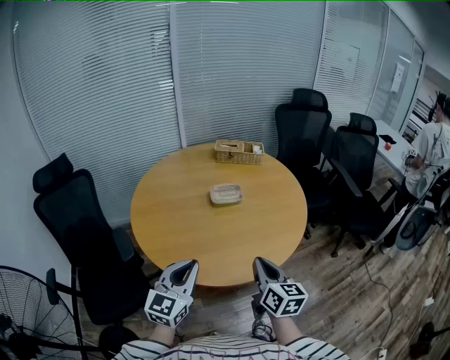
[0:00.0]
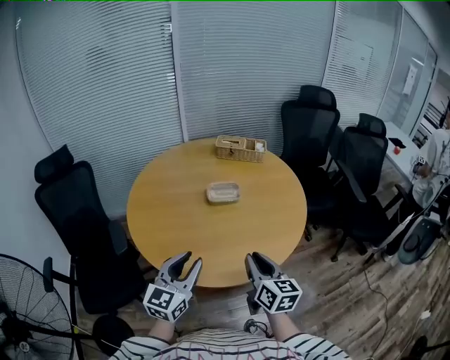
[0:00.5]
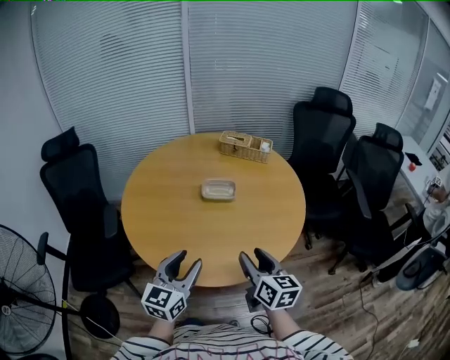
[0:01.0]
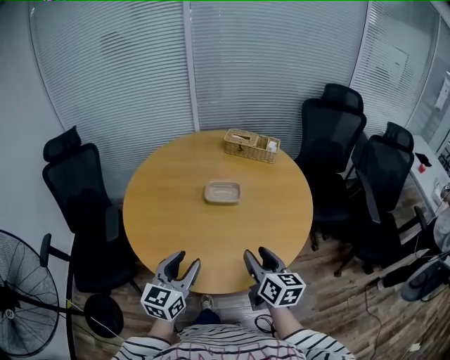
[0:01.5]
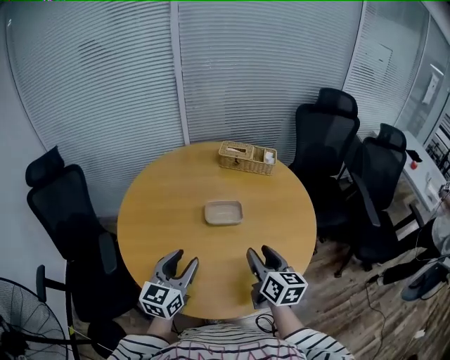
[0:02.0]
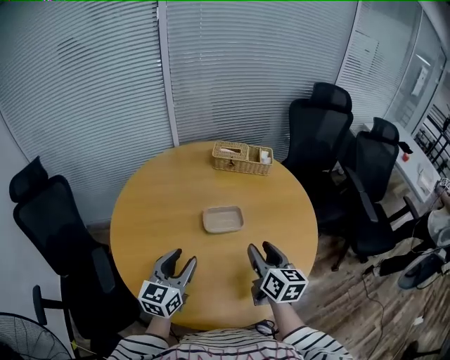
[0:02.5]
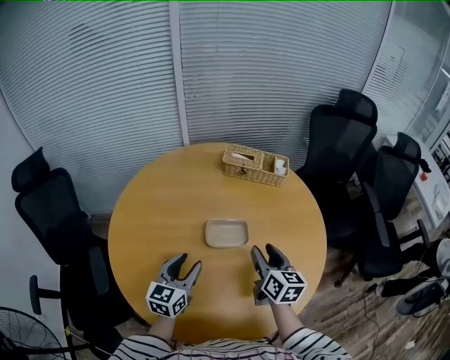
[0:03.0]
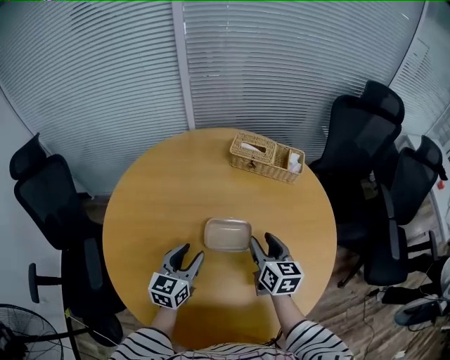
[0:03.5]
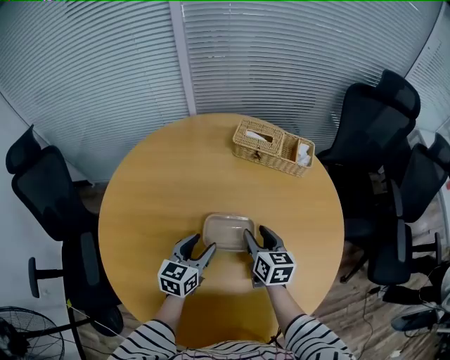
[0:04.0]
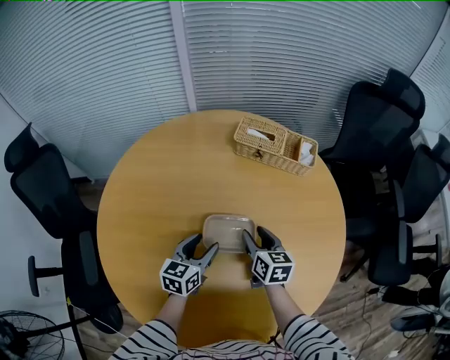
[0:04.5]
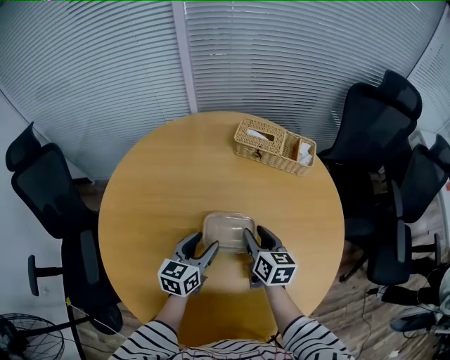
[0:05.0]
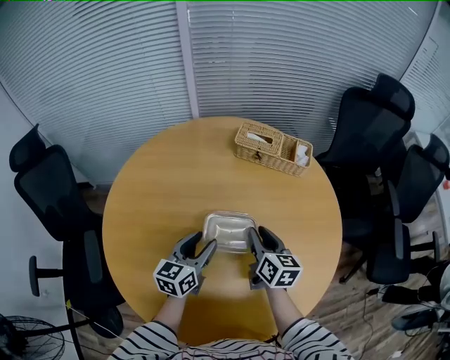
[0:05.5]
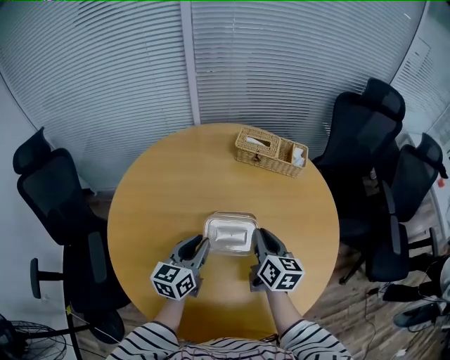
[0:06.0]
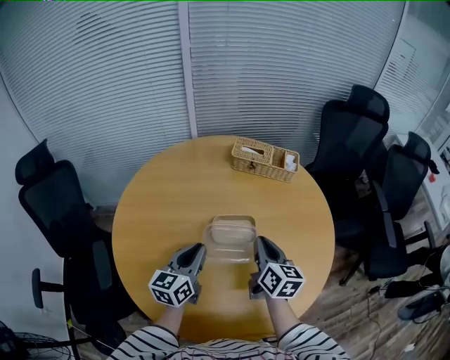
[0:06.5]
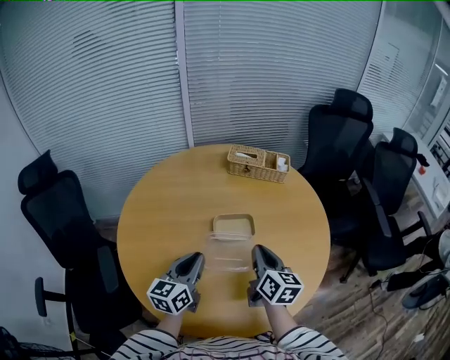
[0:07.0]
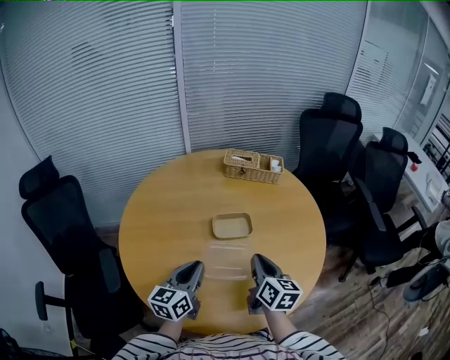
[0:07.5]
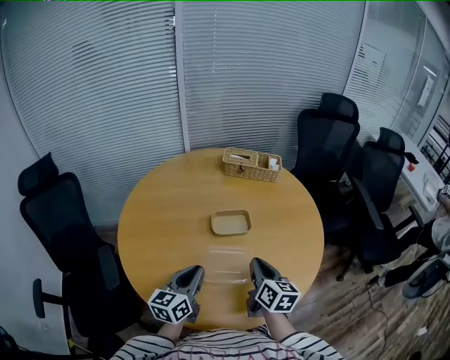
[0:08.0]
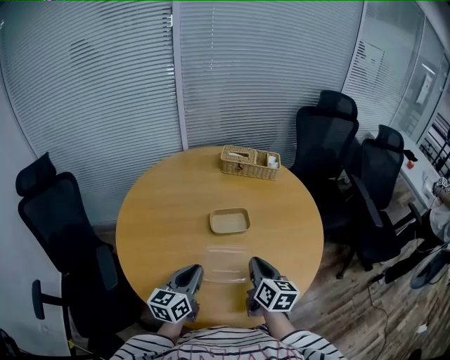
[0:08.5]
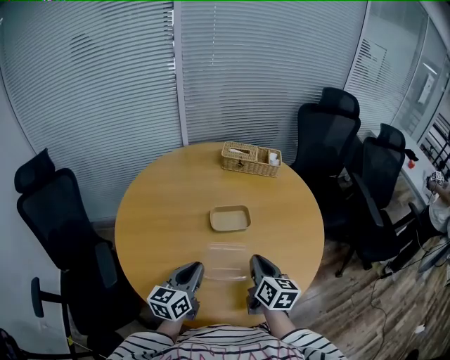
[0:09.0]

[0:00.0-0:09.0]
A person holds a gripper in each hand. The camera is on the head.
0:00.0 to 0:02.0: Both grippers travel together forward, about 20 cm. The left gripper opens. The right gripper opens.
0:02.0 to 0:04.5: Both grippers move forward and downward, roughly 35 cm. The left gripper changes its angle by roughly 20 degrees.
0:04.5 to 0:07.0: The grippers both shift backward and upward by some 25 cm. The left gripper closes its fingers. The right gripper turns by about 20 degrees, and closes.
0:07.0 to 0:09.0: The grippers both shift backward by approximately 10 cm.

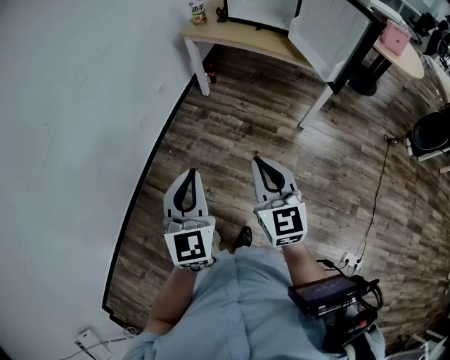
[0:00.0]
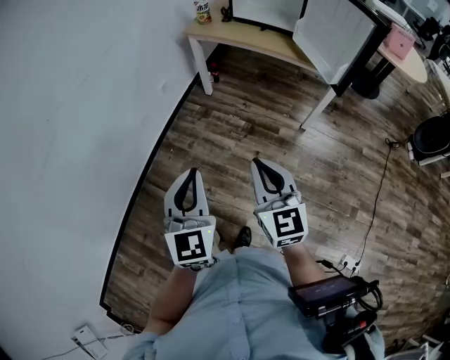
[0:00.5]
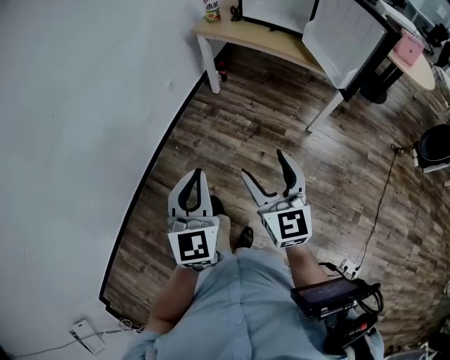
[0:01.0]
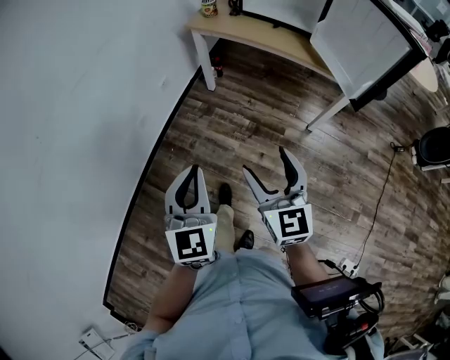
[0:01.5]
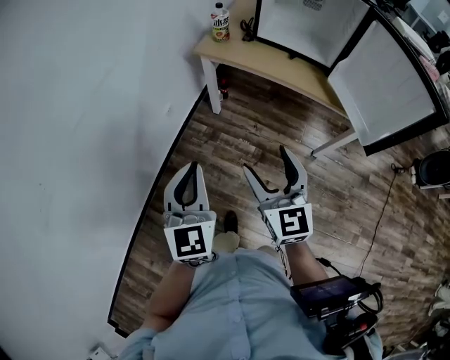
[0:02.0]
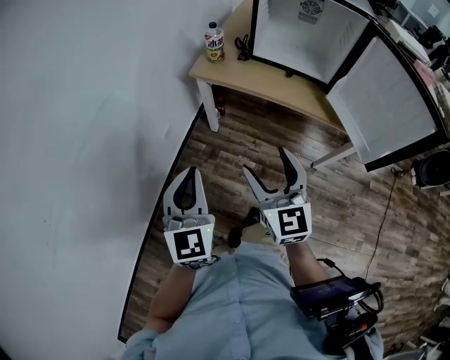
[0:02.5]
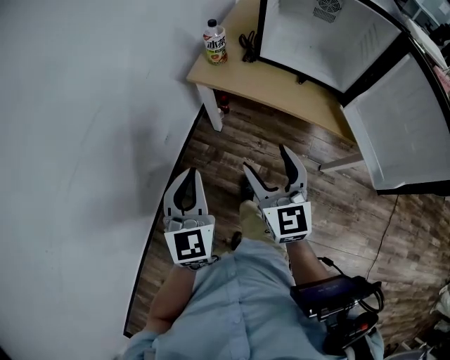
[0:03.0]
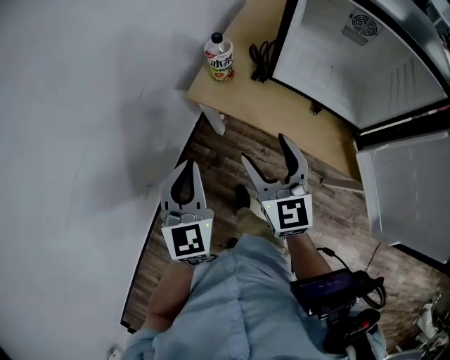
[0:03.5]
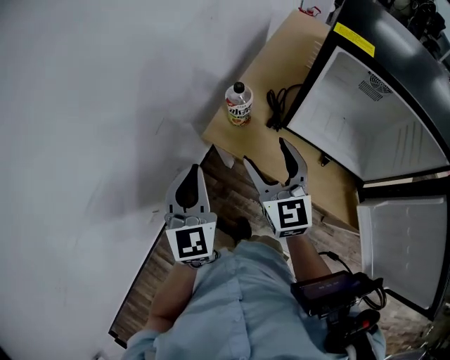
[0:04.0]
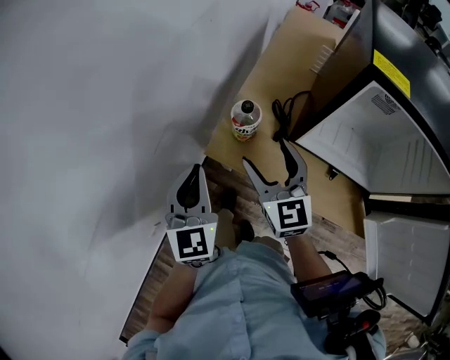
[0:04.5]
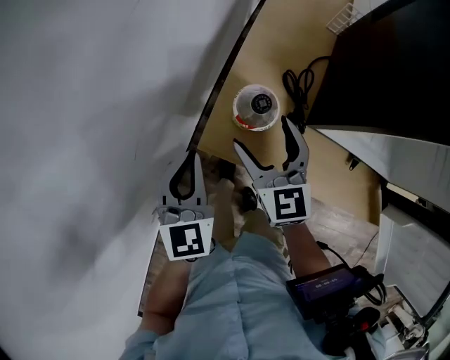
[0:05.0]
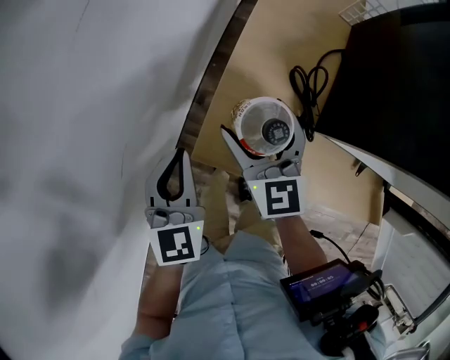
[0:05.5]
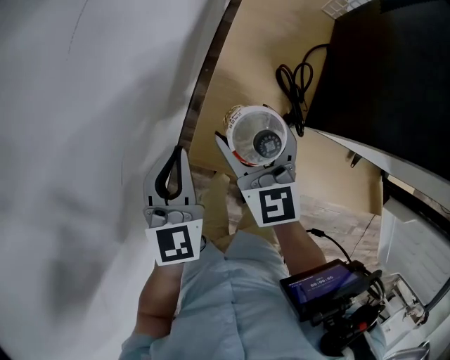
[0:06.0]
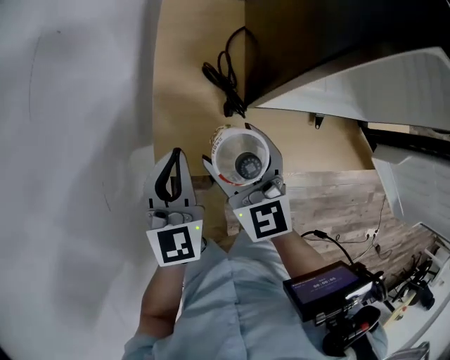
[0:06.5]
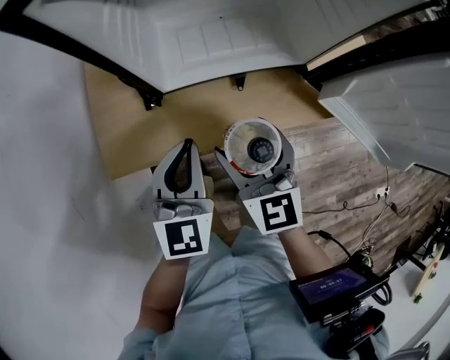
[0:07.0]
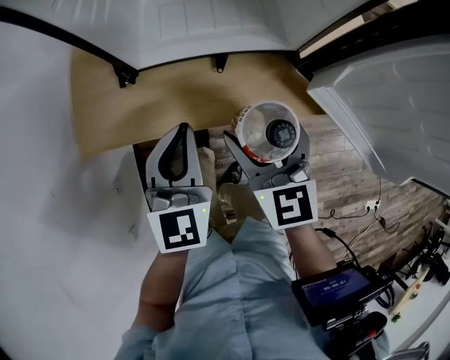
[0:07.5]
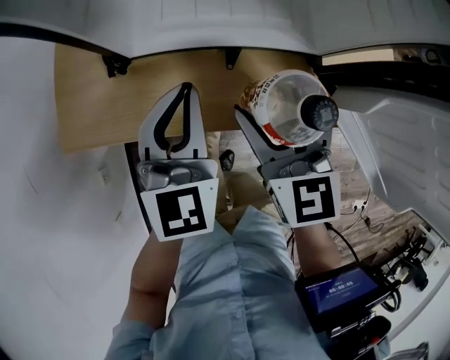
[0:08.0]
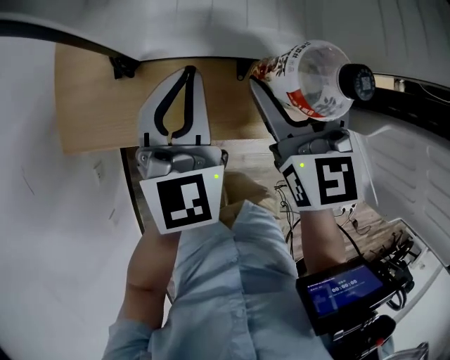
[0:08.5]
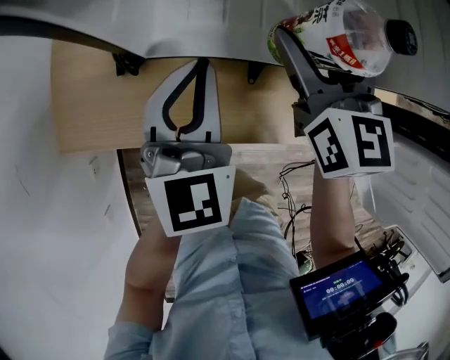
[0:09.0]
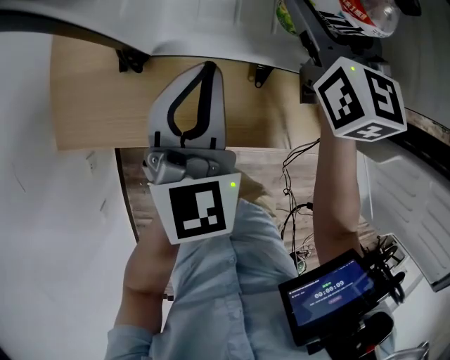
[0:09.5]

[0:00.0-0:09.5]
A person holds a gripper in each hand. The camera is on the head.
0:00.0 to 0:02.0: The two grippers go some 30 cm forward. The right gripper opens its fingers.
0:02.0 to 0:04.0: The two grippers travel together, forward, about 50 cm.
0:04.0 to 0:05.5: The two grippers go some 25 cm forward and downward. The left gripper turns by approximately 20 degrees.
0:05.5 to 0:07.5: The left gripper moves about 40 cm, and turns by about 30 degrees, while the right gripper ends up roughly 40 cm from where it was, and rotates some 30 degrees.
0:07.5 to 0:09.5: The right gripper travels forward by some 25 cm, while the left gripper heads forward, covering some 15 cm.

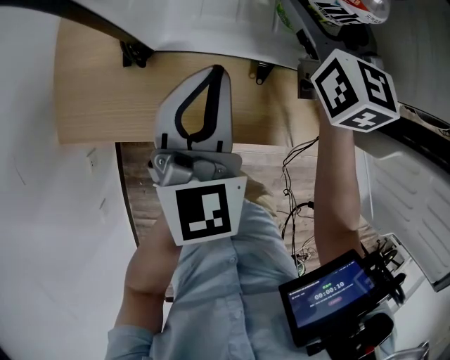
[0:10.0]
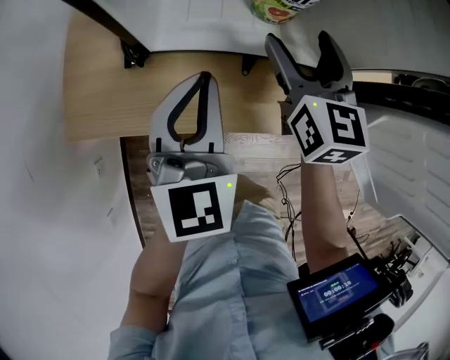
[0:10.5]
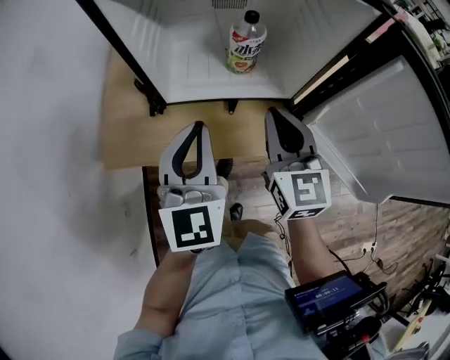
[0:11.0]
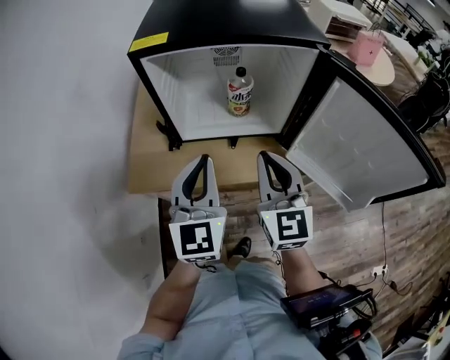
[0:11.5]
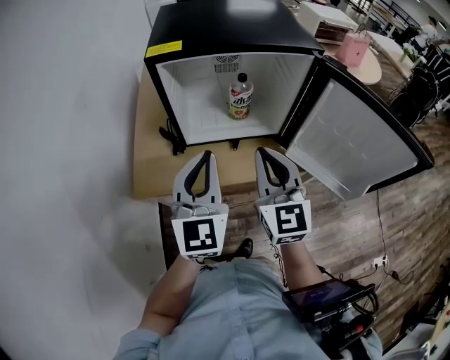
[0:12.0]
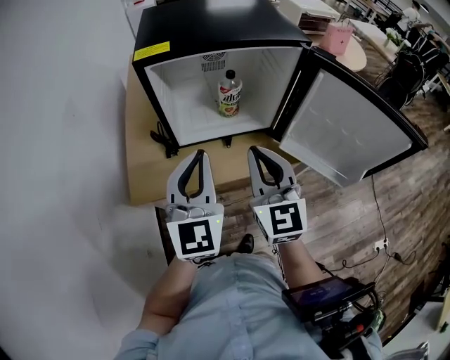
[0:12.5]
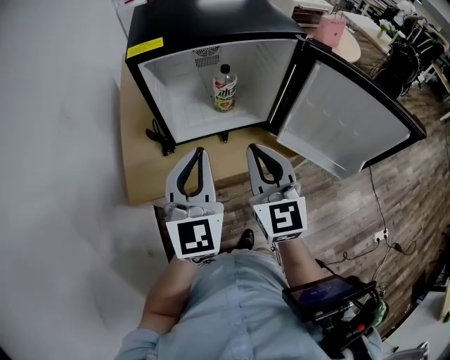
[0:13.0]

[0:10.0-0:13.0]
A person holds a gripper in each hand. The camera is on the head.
0:10.0 to 0:11.5: The left gripper travels upward and backward by some 25 cm. Meanwhile the right gripper heads backward and upward, covering about 35 cm, and closes.
0:11.5 to 0:13.0: The left gripper shifts by about 5 cm. The right gripper ends up approximately 5 cm from where it was.

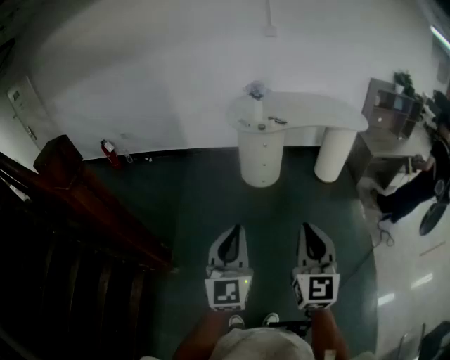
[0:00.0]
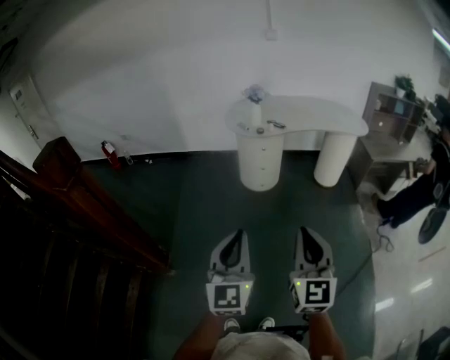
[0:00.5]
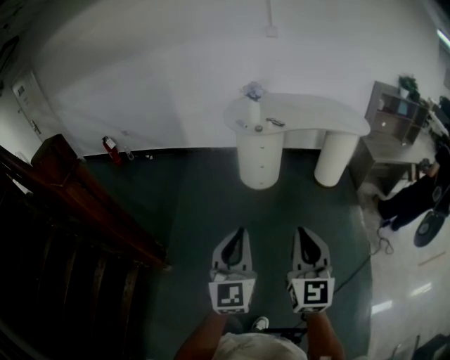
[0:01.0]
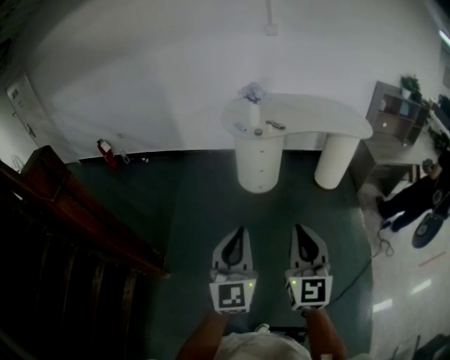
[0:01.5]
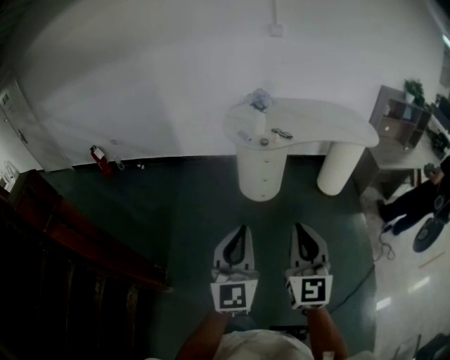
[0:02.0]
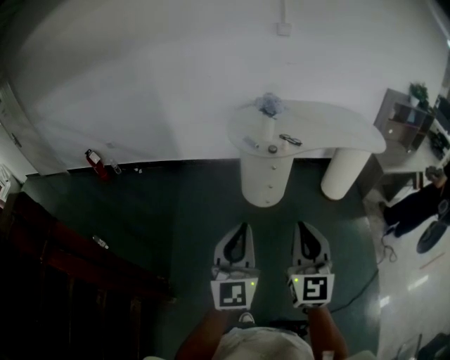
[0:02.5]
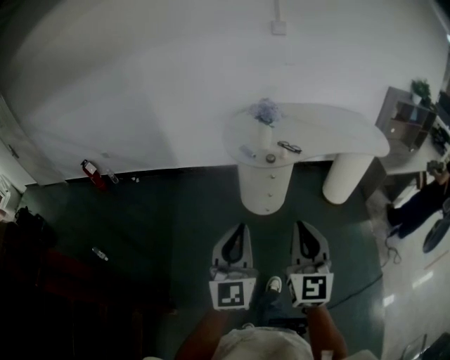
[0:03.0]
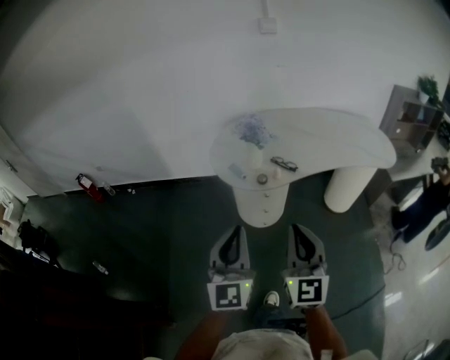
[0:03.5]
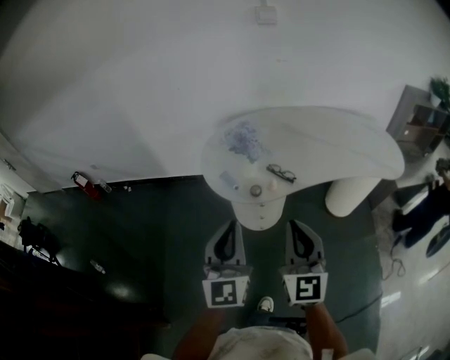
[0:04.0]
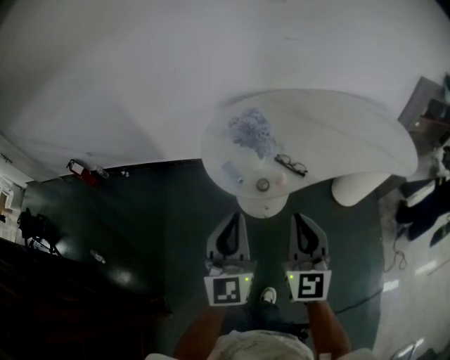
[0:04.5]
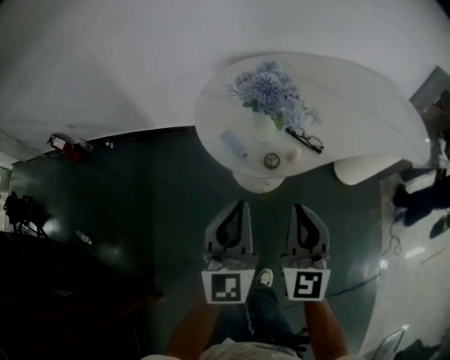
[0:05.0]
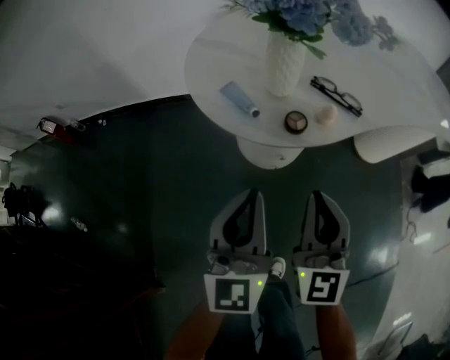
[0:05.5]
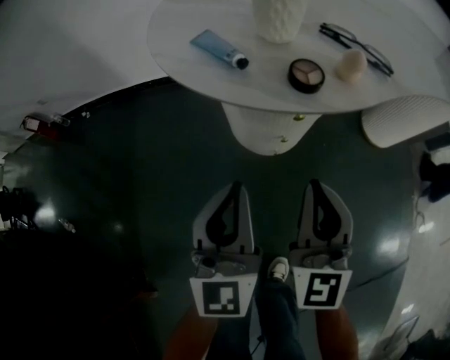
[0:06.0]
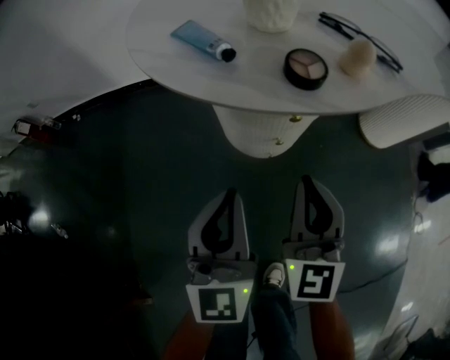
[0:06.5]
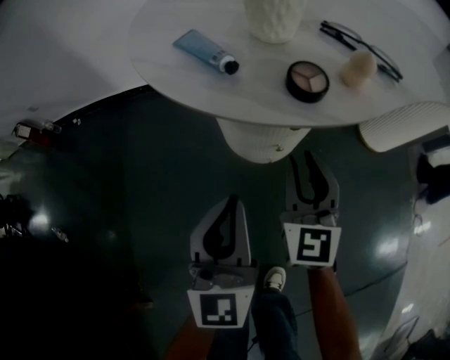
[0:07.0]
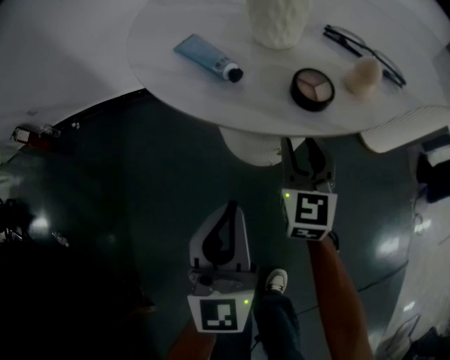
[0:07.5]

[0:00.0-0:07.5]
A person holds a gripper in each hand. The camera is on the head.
0:00.0 to 0:02.0: The two grippers go approximately 20 cm forward.
0:02.0 to 0:04.0: Both grippers are carried forward, approximately 40 cm.
0:04.0 to 0:05.5: Both grippers move downward, roughly 25 cm.
0:05.5 to 0:07.5: The left gripper shifts approximately 15 cm downward; the right gripper goes roughly 25 cm downward and forward, and opens.
